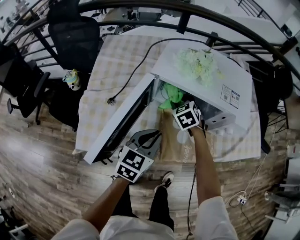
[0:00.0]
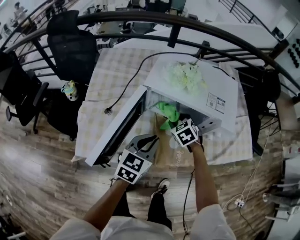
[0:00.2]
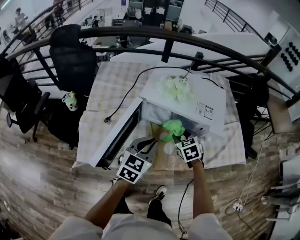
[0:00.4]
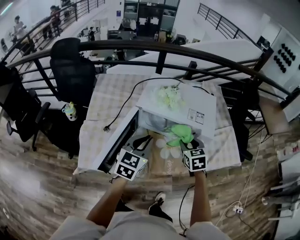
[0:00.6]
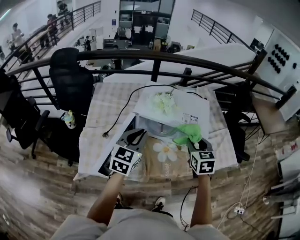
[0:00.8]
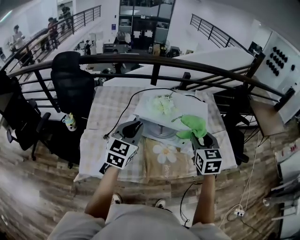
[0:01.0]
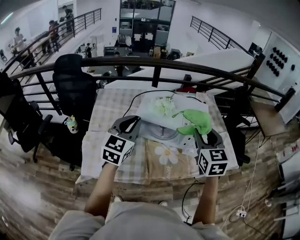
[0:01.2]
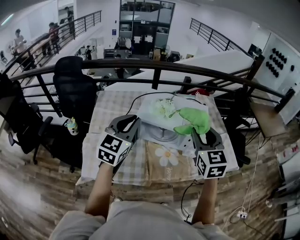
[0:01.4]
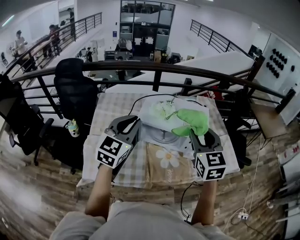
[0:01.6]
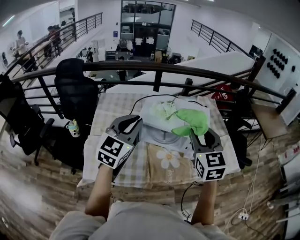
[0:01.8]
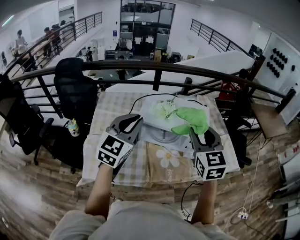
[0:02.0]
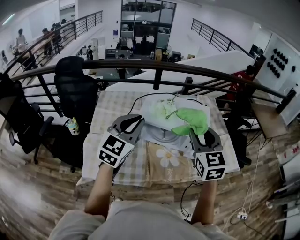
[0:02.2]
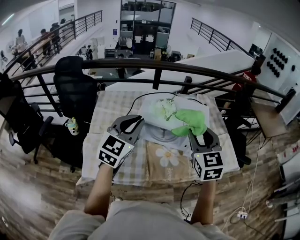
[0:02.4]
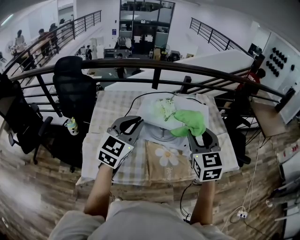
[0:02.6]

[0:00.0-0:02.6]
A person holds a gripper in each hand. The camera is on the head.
0.0 to 1.2 s: The left gripper travels upward by roughly 25 cm, and swivels some 30 degrees. Meanwhile the right gripper heads upward, to the right and backward, covering some 40 cm, and points its fingers approximately 30 degrees further upward.
1.2 to 2.6 s: The grippers move only a little.

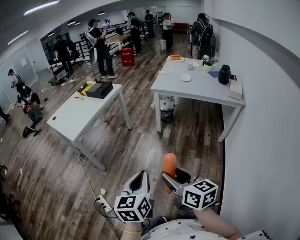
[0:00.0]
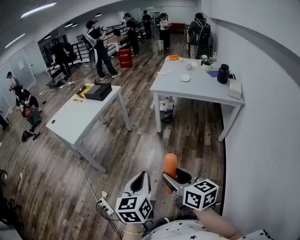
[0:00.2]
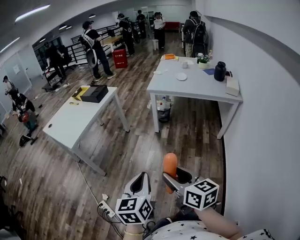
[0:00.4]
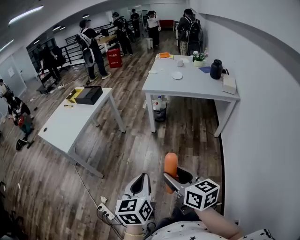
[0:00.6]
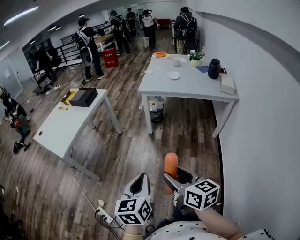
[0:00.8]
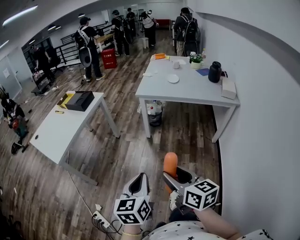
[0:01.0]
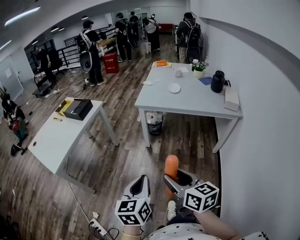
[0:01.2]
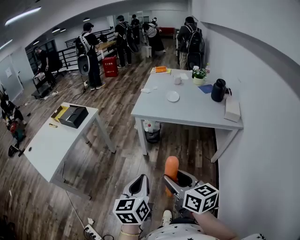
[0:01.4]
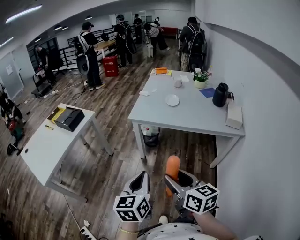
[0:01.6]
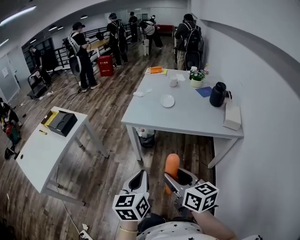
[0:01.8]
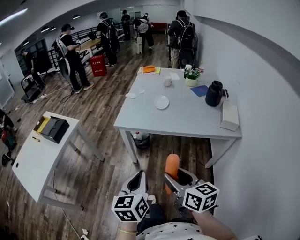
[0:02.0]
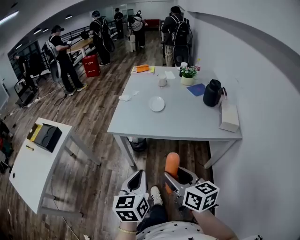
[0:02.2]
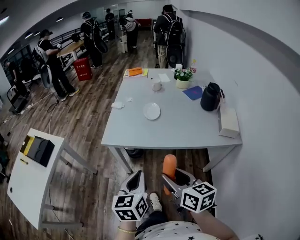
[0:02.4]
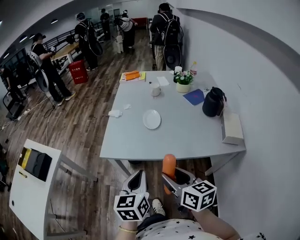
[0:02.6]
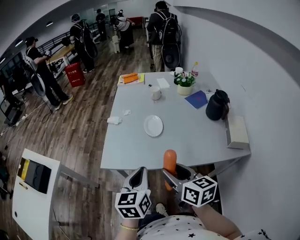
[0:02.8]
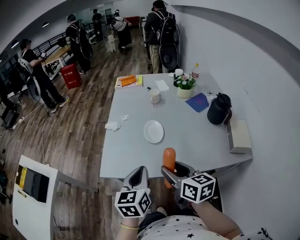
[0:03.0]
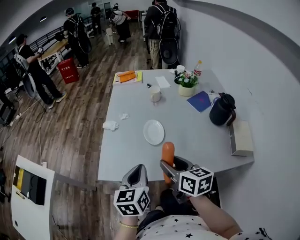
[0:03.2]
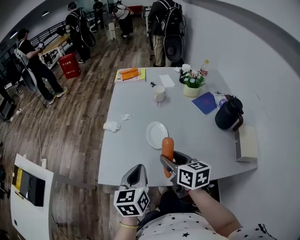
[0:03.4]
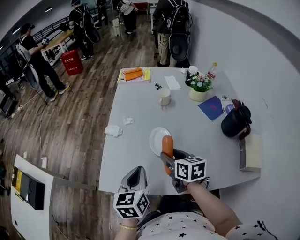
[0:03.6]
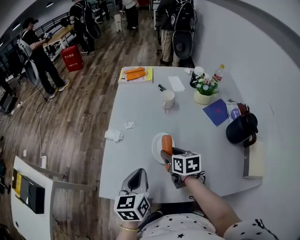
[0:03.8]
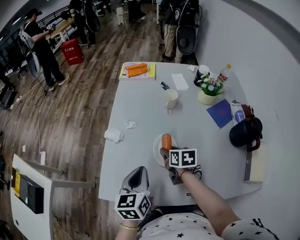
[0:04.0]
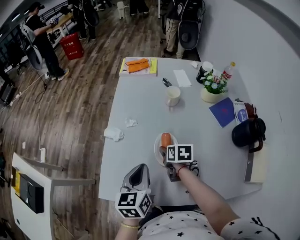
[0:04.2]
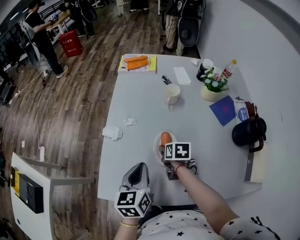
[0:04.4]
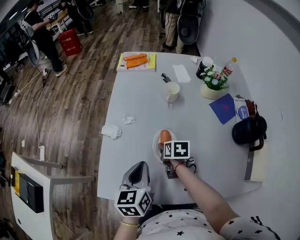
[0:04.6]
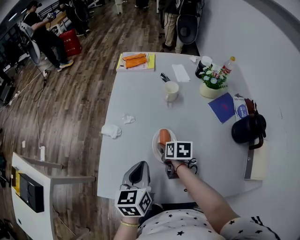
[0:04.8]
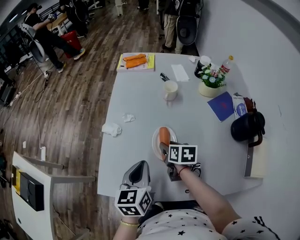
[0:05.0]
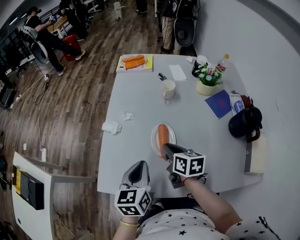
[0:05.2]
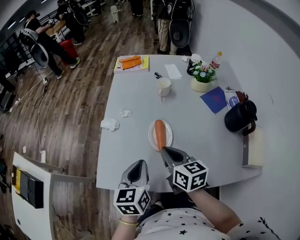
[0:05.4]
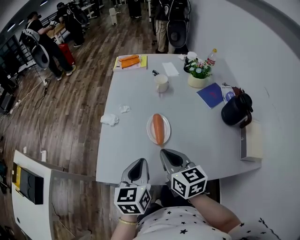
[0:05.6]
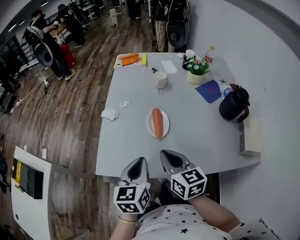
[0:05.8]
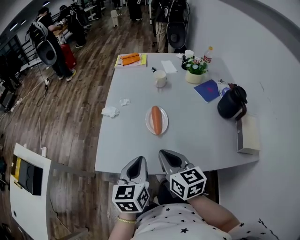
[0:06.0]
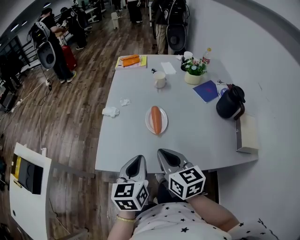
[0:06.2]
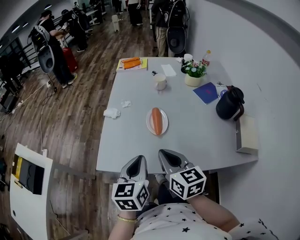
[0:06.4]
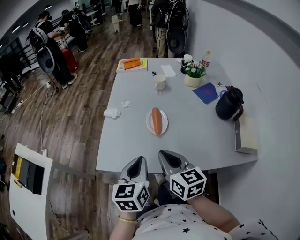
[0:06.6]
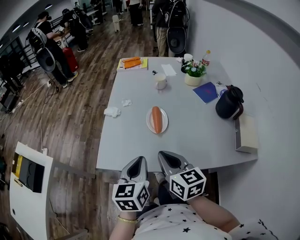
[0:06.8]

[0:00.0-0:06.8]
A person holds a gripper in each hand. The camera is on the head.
0.0 to 1.4 s: The two grippers go roughly 30 cm forward and to the right.
1.4 to 2.8 s: The two grippers travel together, forward, approximately 50 cm.
2.8 to 4.0 s: The left gripper travels forward by about 25 cm. Meanwhile the right gripper heads forward and downward, covering about 40 cm, and rotates approximately 30 degrees.
4.0 to 5.4 s: The right gripper moves upward and backward, about 15 cm, turns by about 30 degrees, and closes up.
5.4 to 6.8 s: Both grippers travel together backward, some 15 cm.

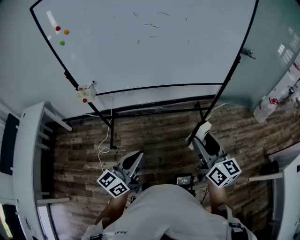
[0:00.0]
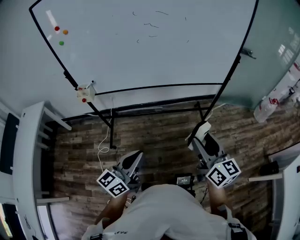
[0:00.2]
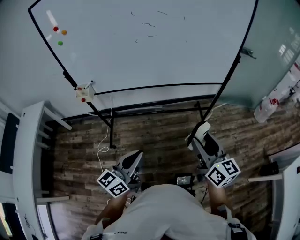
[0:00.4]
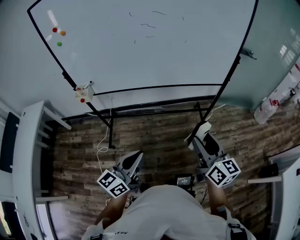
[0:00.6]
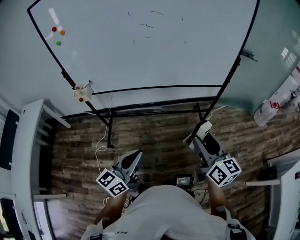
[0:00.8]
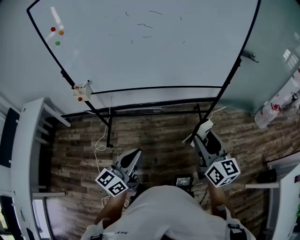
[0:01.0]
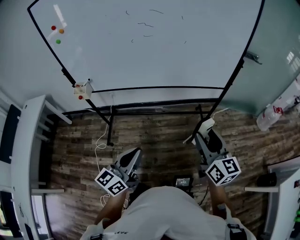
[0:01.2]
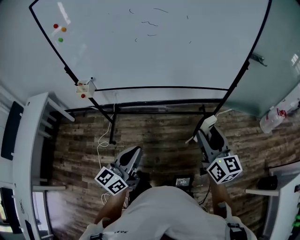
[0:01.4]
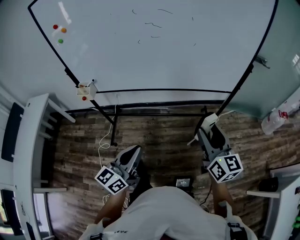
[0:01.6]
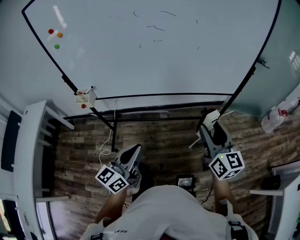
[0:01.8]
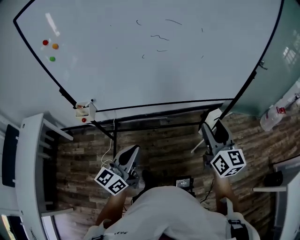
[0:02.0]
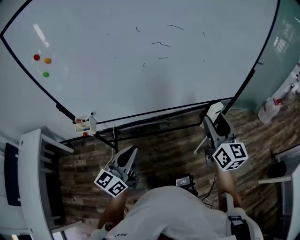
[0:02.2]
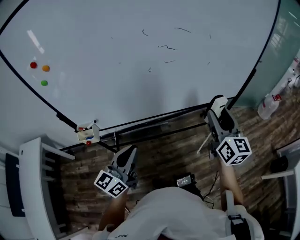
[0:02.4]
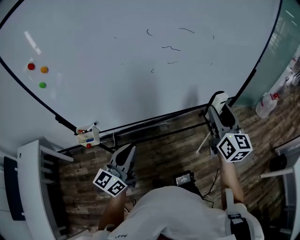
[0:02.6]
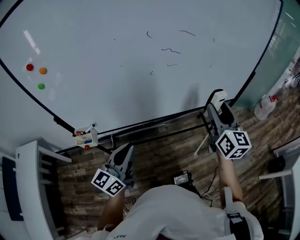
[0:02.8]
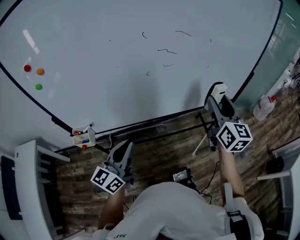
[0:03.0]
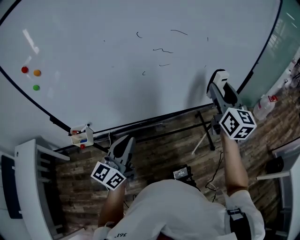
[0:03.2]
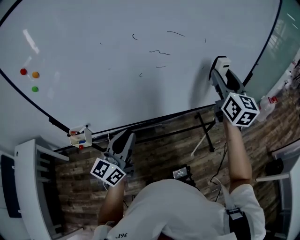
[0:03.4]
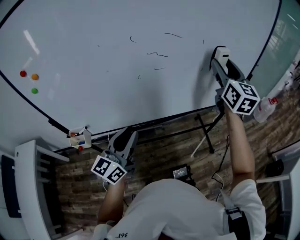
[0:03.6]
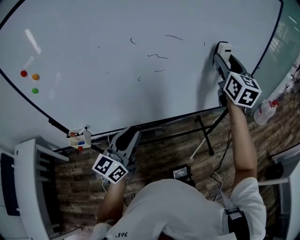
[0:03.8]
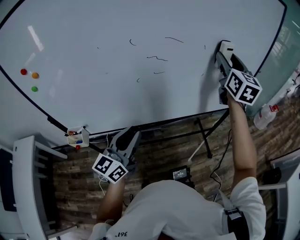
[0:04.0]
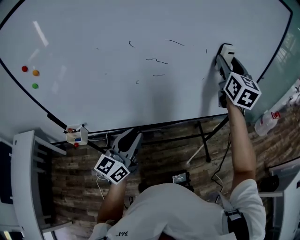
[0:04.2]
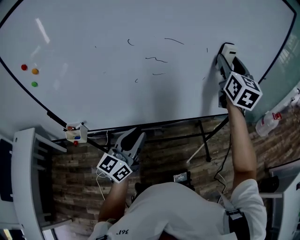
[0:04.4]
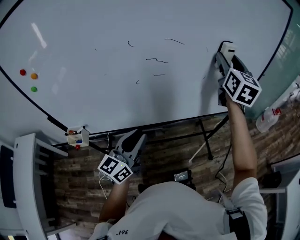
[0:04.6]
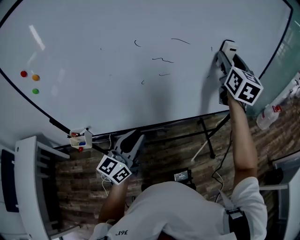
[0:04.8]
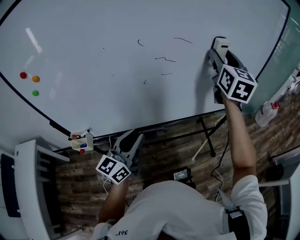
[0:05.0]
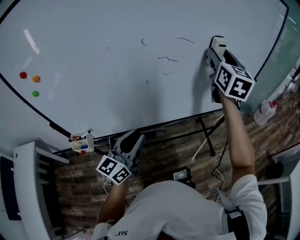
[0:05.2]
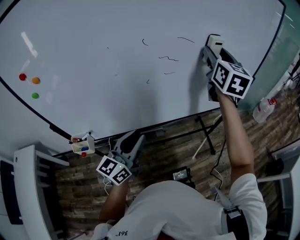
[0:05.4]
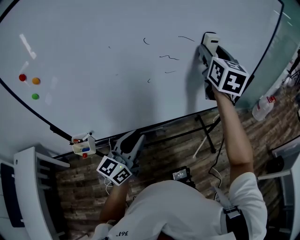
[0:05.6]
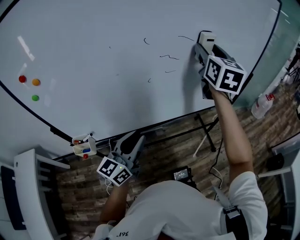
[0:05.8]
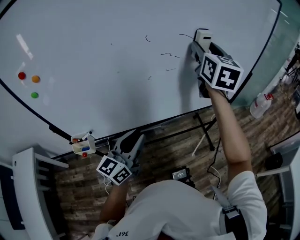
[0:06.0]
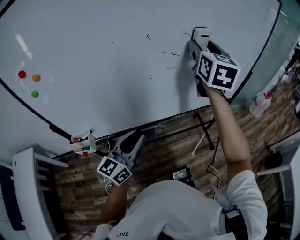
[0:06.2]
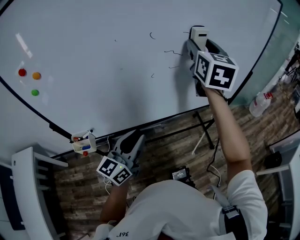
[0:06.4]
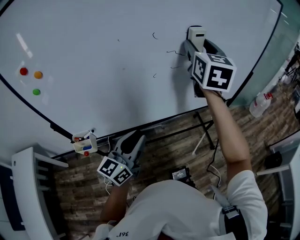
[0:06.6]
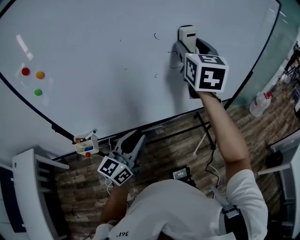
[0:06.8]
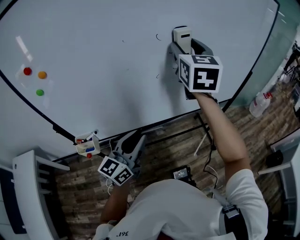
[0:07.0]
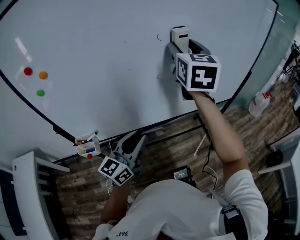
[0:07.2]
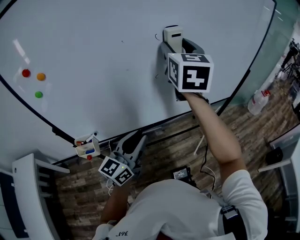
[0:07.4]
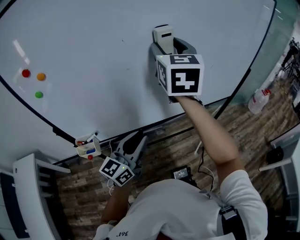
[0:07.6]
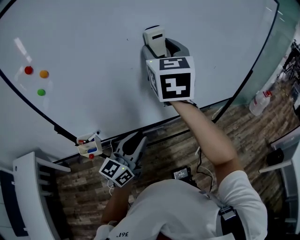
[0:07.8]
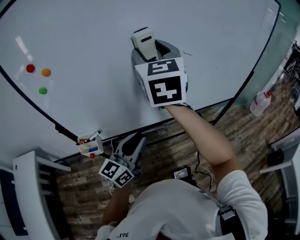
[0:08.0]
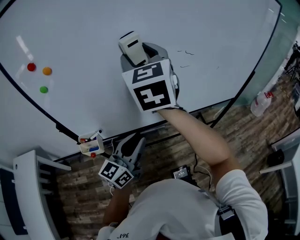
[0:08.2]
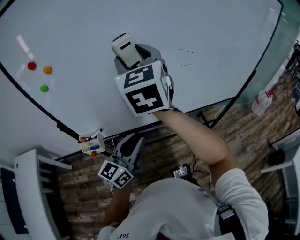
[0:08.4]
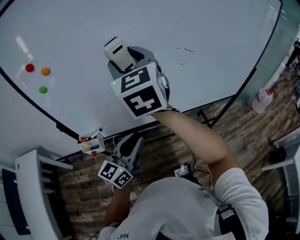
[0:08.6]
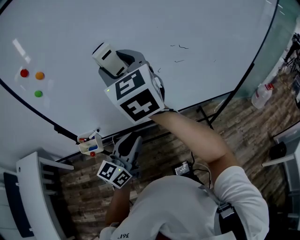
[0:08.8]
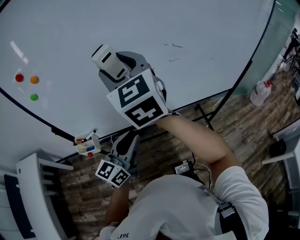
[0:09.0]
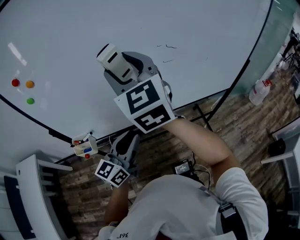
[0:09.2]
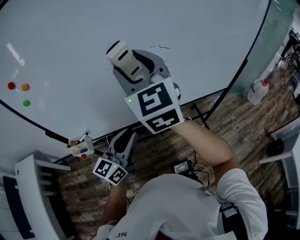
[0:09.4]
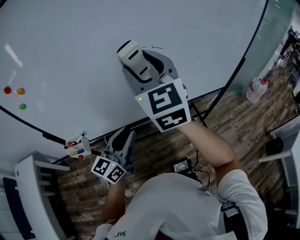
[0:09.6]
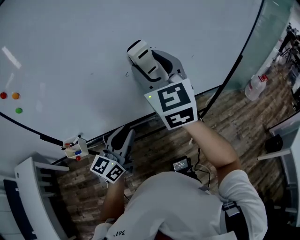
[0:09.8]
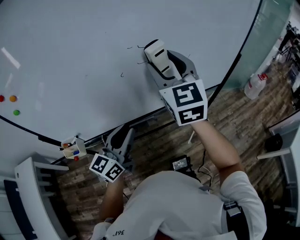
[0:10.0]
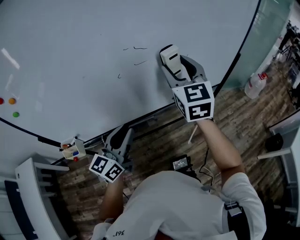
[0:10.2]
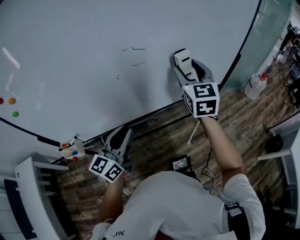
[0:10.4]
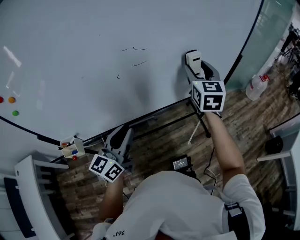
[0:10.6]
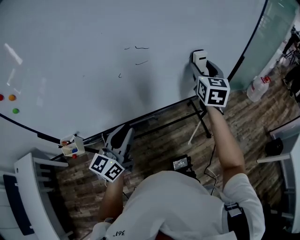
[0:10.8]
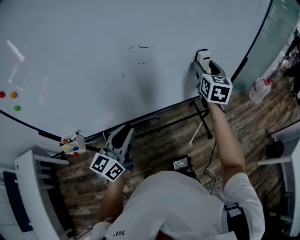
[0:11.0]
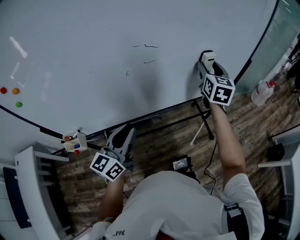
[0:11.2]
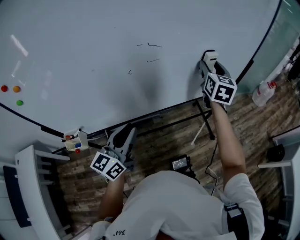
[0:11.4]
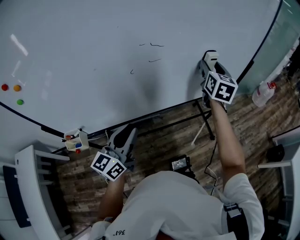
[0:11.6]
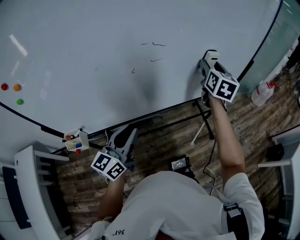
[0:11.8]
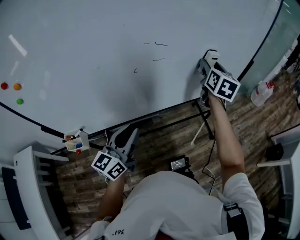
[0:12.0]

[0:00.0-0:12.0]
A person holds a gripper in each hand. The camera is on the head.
0.0 to 1.6 s: Both grippers move forward, roughly 10 cm.
1.6 to 3.0 s: The right gripper travels forward and to the left by roughly 25 cm, and rotates approximately 20 degrees; the left gripper moves to the left and forward, roughly 30 cm.
3.0 to 4.4 s: The right gripper moves forward and upward, approximately 20 cm. The left gripper goes some 15 cm to the right and forward.
4.4 to 6.0 s: The right gripper is displaced to the left and backward by approximately 15 cm. The left gripper heads to the left, covering approximately 10 cm.
6.0 to 7.6 s: The right gripper travels to the left and backward by some 15 cm.
7.6 to 9.0 s: The right gripper travels to the left and backward by about 15 cm, and turns by roughly 30 degrees.
9.0 to 10.4 s: The left gripper moves to the right, about 10 cm. Meanwhile the right gripper travels to the right by about 35 cm, and turns by some 30 degrees.
10.4 to 12.0 s: The right gripper shifts some 10 cm forward, and rotates some 30 degrees.

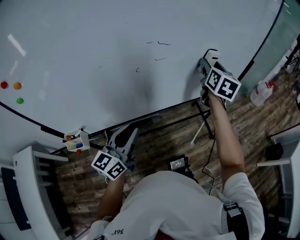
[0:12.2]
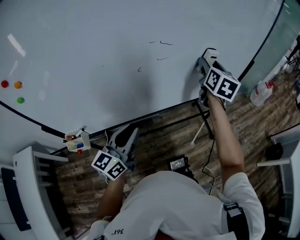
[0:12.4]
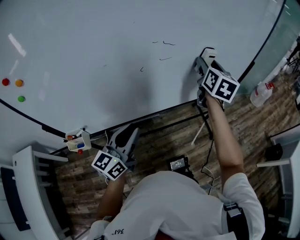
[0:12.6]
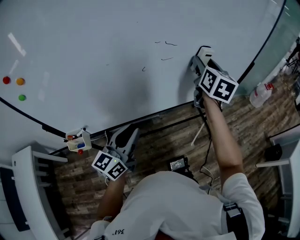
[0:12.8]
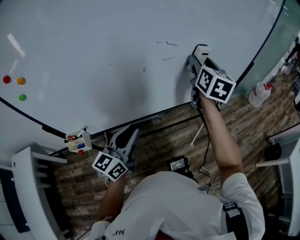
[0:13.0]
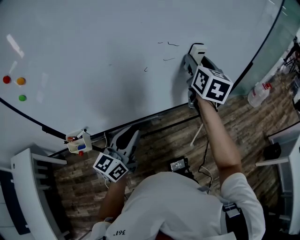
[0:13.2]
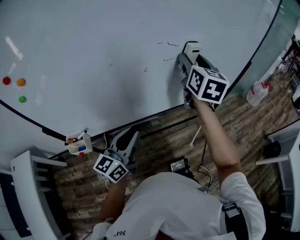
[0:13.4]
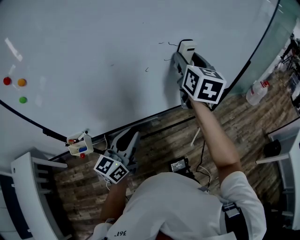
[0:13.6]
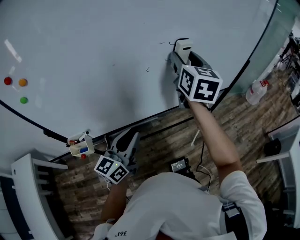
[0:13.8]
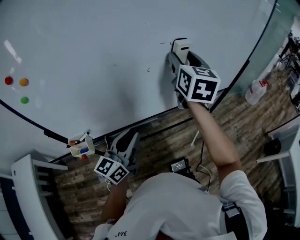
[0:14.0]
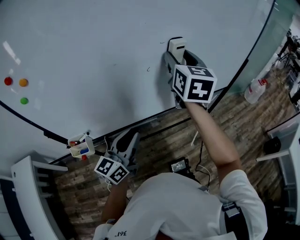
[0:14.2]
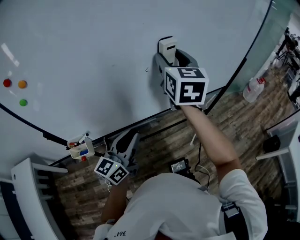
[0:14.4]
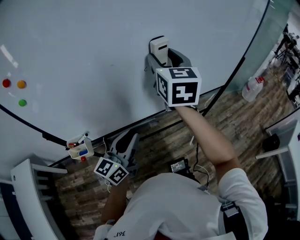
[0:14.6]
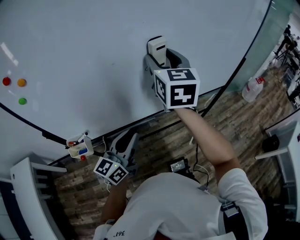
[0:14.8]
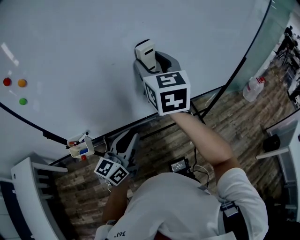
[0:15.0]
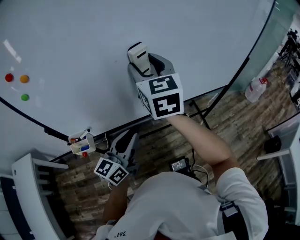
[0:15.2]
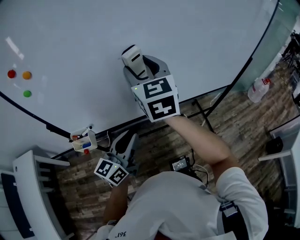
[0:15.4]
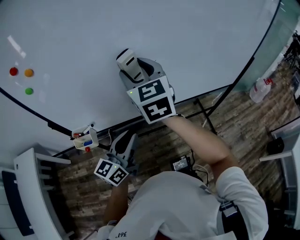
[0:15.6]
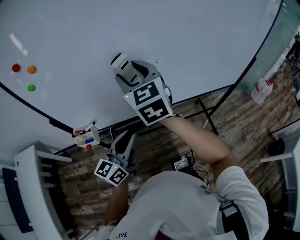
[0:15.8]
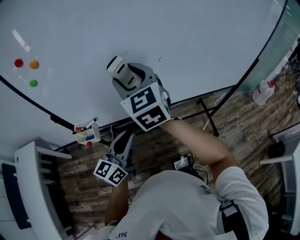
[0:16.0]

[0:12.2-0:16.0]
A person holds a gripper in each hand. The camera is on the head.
12.2 to 13.4 s: The right gripper moves to the left, backward and upward, some 15 cm.
13.4 to 14.8 s: The right gripper shifts some 15 cm to the left and backward.
14.8 to 16.0 s: The right gripper goes approximately 20 cm to the left and backward, and turns by some 30 degrees. Meanwhile the left gripper ends up about 5 cm from where it was.
